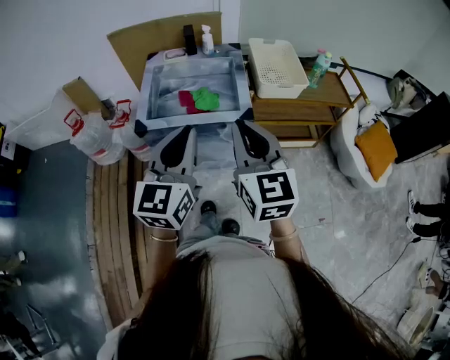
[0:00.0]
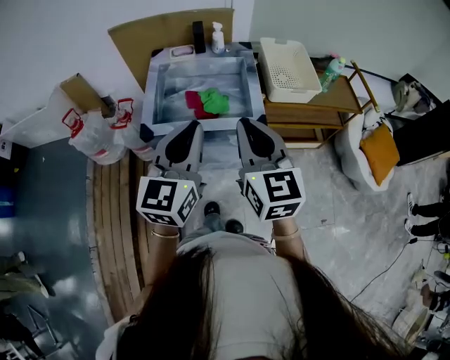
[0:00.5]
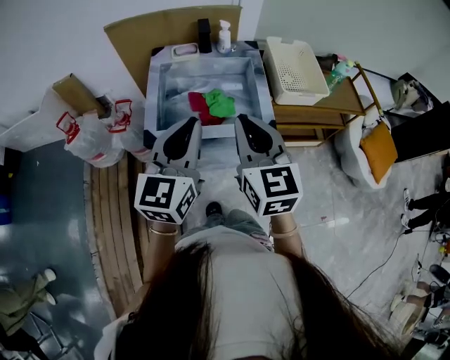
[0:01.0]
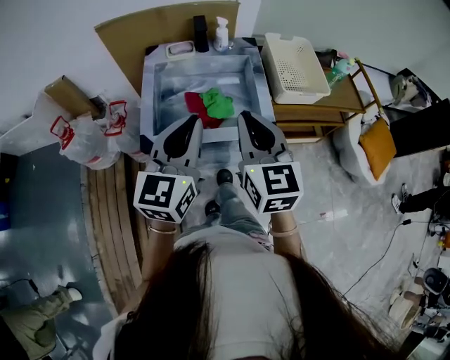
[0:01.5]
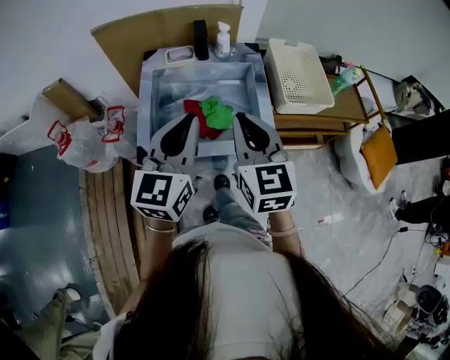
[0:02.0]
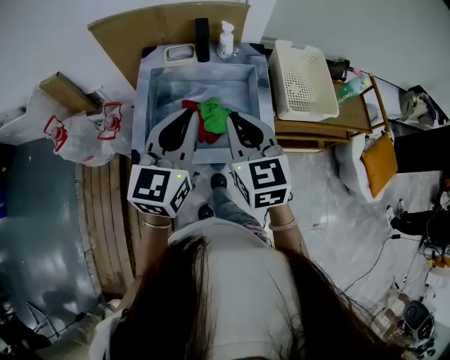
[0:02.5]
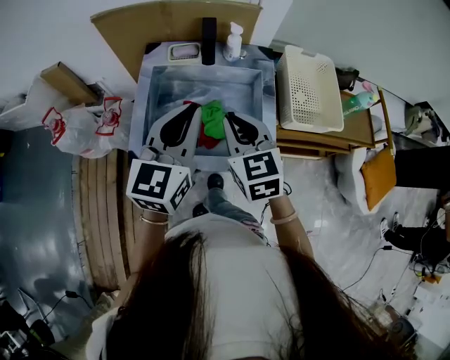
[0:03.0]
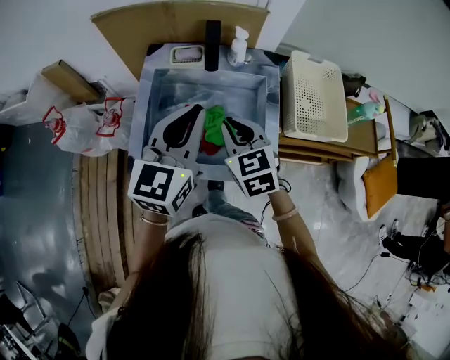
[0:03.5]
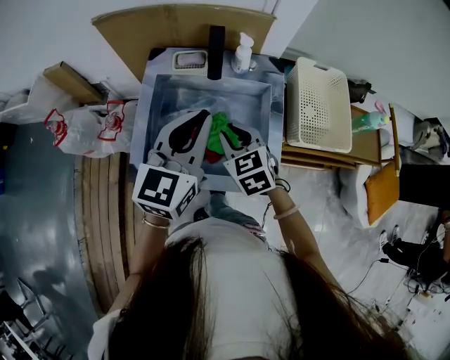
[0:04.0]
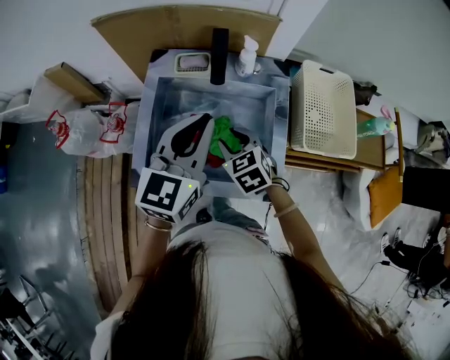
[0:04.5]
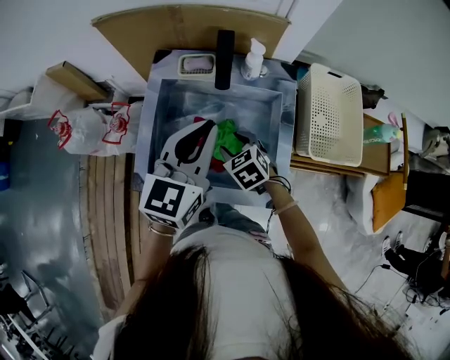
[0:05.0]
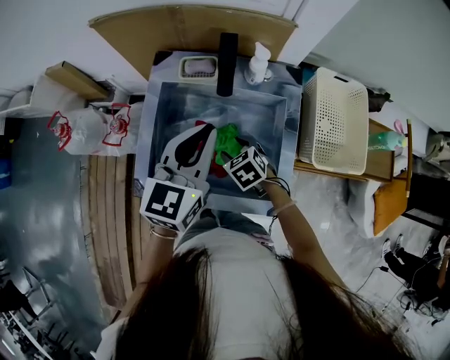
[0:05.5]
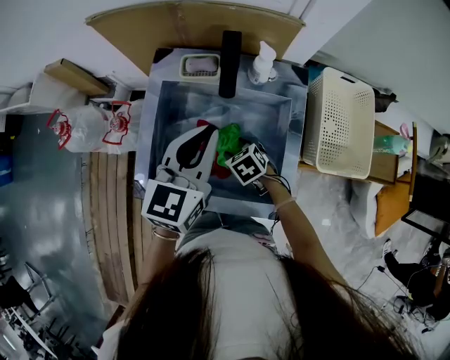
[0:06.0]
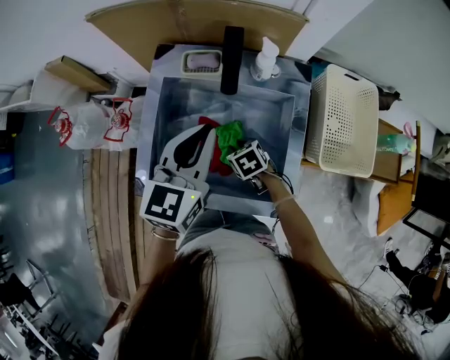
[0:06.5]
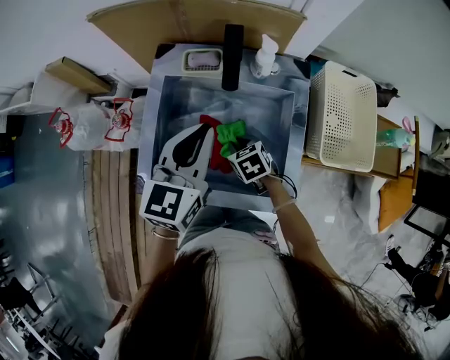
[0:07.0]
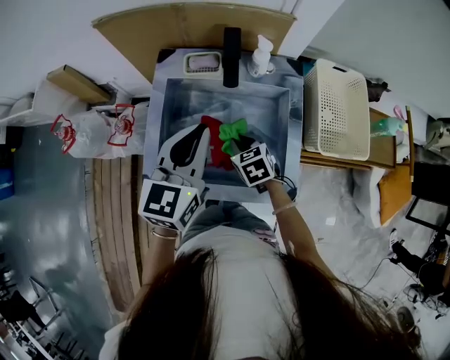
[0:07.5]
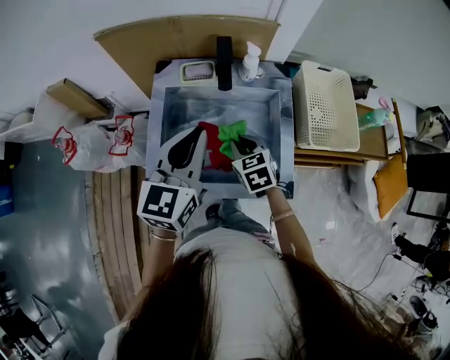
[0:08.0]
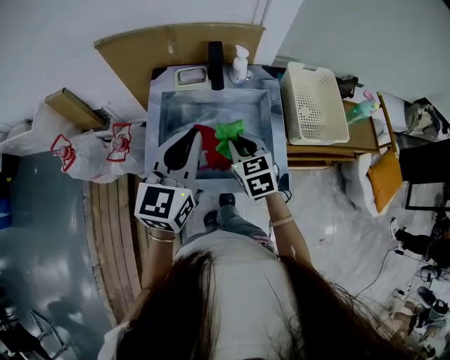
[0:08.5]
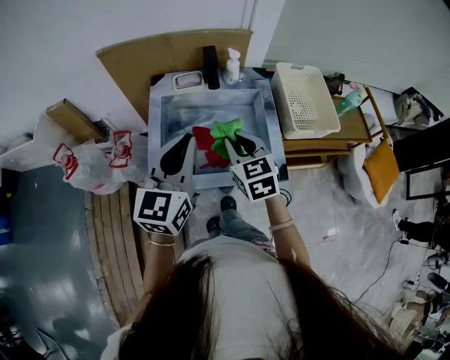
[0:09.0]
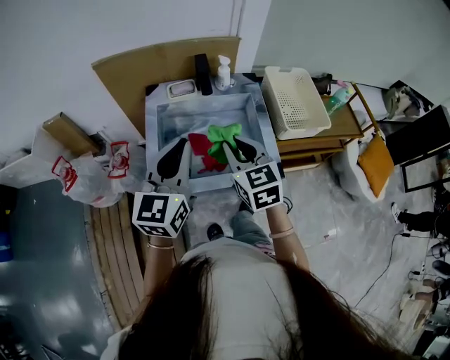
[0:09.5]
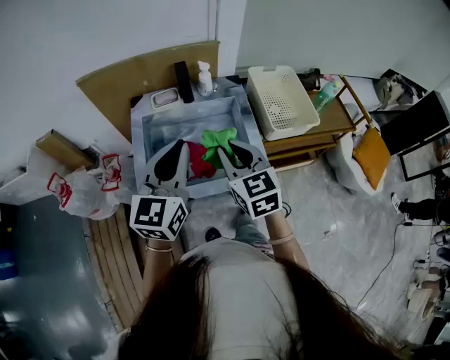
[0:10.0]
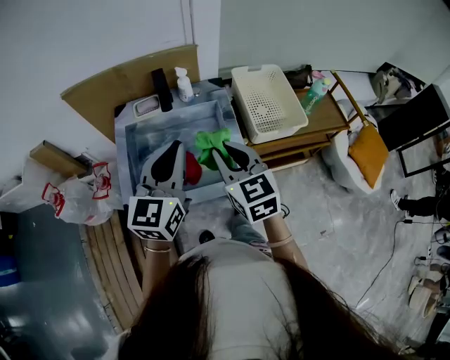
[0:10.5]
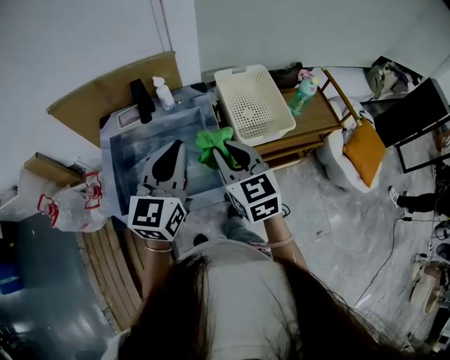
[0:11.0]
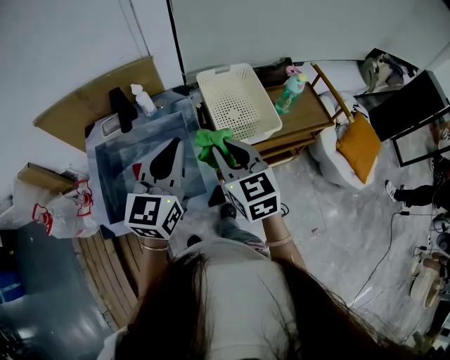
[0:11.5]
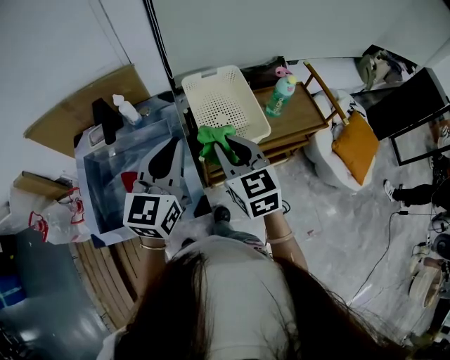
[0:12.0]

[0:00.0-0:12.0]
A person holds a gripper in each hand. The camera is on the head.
0:00.0 to 0:02.0: The two grippers go approximately 25 cm forward and to the left.
0:02.0 to 0:04.0: The right gripper heads downward and forward, covering about 20 cm, and changes its angle by approximately 40 degrees; the left gripper travels forward by some 15 cm.
0:04.0 to 0:06.0: The left gripper shifts roughly 10 cm forward and downward, while the right gripper heads downward, covering roughly 20 cm, rotates some 30 degrees, and opens up.
0:06.0 to 0:08.0: The right gripper goes some 10 cm upward, changes its angle by approximately 30 degrees, and closes. Meanwhile the left gripper goes roughly 5 cm to the left and backward.
0:08.0 to 0:10.0: The left gripper moves backward and upward, about 10 cm; the right gripper travels upward and backward by roughly 20 cm, and turns by approximately 30 degrees.
0:10.0 to 0:12.0: The right gripper travels to the right by roughly 25 cm, while the left gripper shifts some 30 cm to the right and forward.

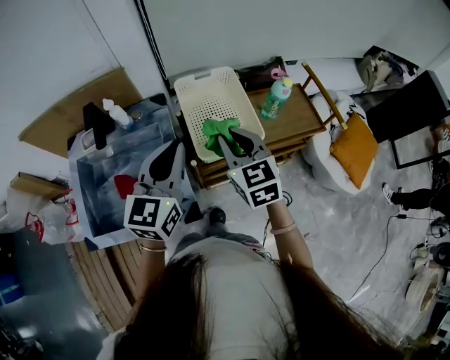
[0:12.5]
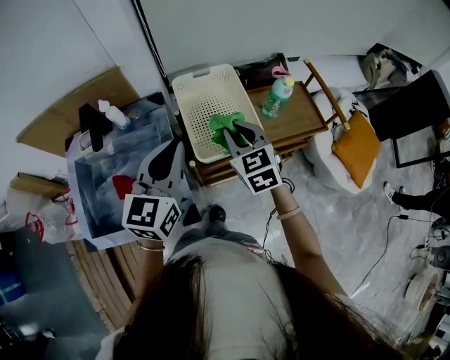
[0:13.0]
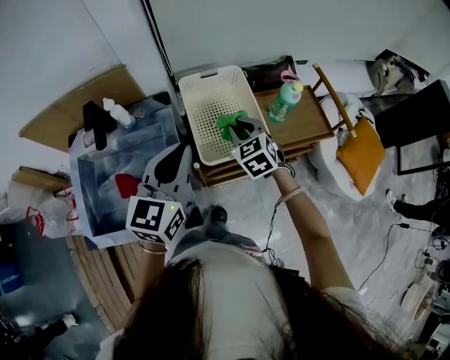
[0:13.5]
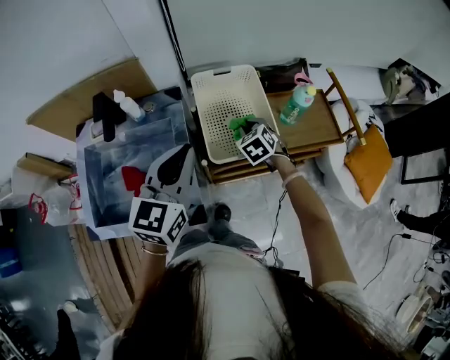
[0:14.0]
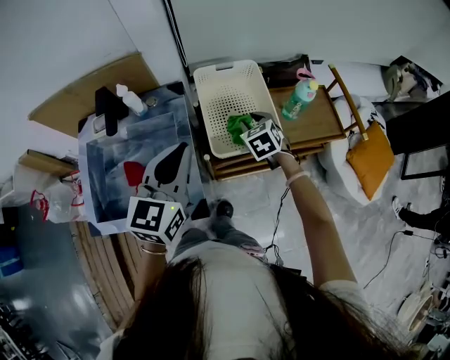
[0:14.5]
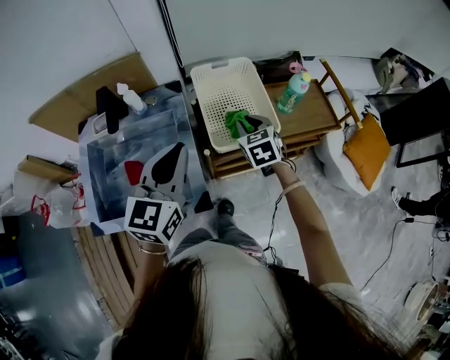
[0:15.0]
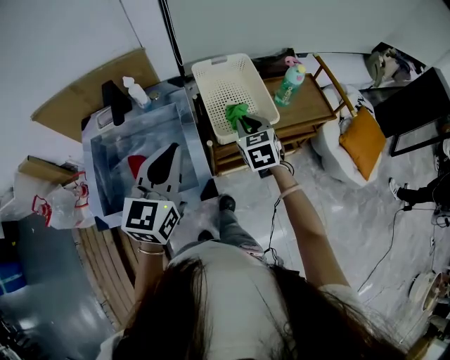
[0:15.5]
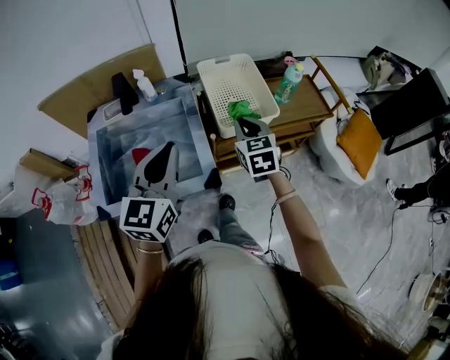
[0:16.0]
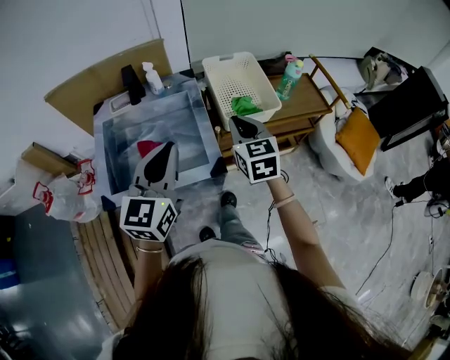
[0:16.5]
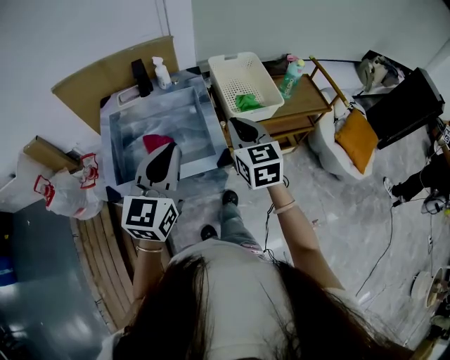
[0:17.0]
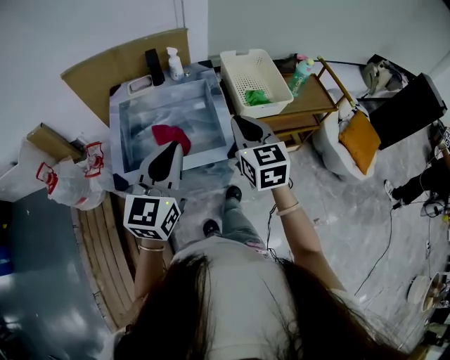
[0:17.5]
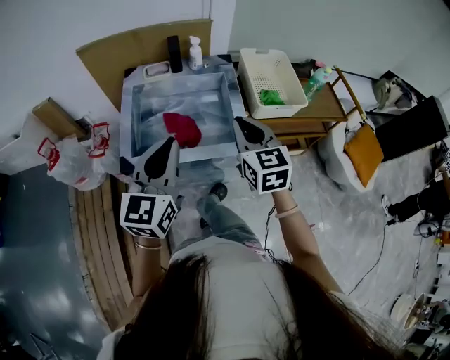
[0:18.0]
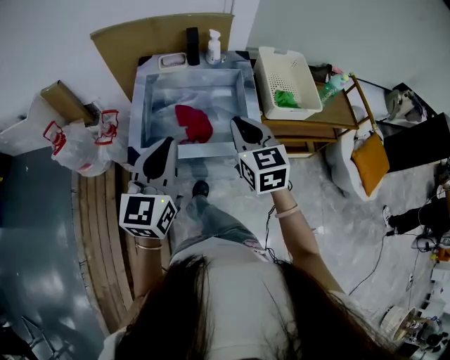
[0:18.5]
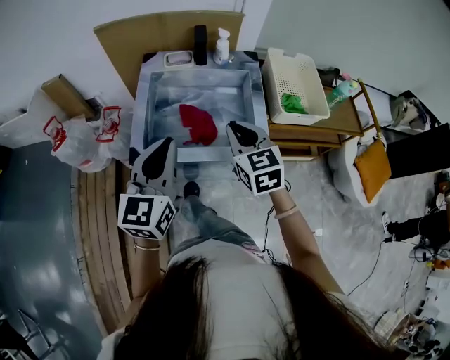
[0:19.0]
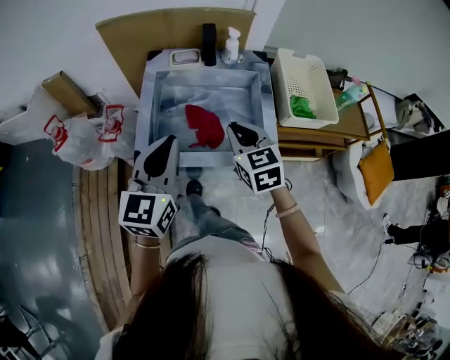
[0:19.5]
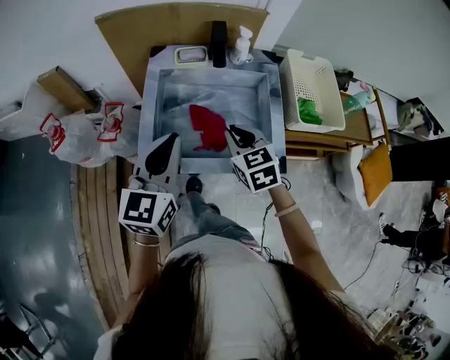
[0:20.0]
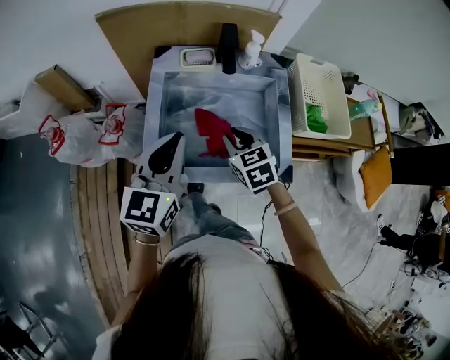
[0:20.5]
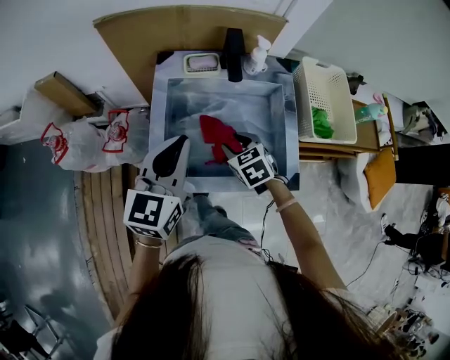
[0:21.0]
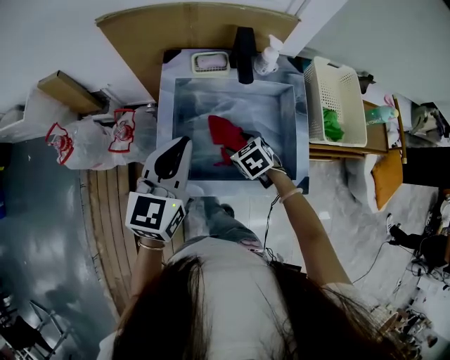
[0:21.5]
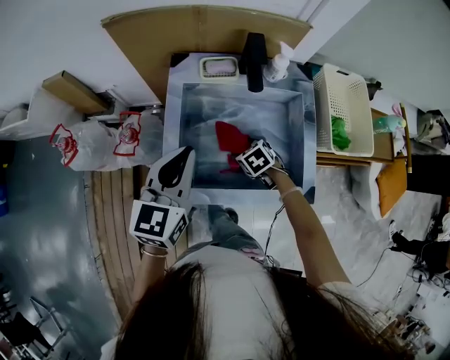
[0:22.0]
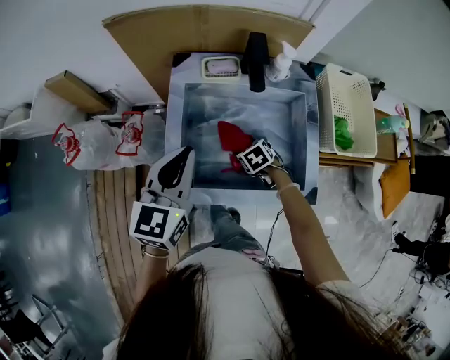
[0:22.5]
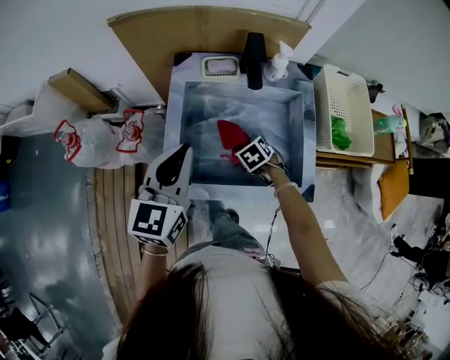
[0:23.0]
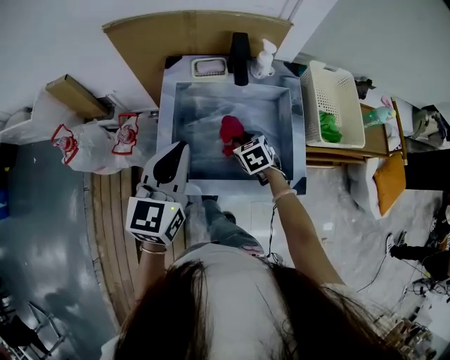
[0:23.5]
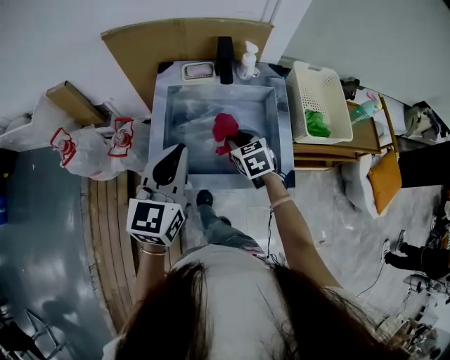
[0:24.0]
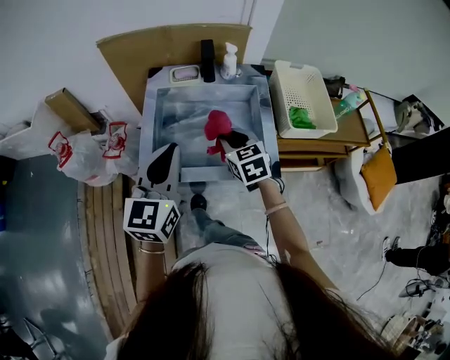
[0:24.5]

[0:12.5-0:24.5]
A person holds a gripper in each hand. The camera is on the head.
0:12.5 to 0:14.5: The right gripper shifts roughly 20 cm downward and forward, and turns by roughly 30 degrees.
0:14.5 to 0:16.5: The left gripper shifts roughly 20 cm backward and to the left. Meanwhile the right gripper goes some 30 cm backward, upward and to the left, swivels some 30 degrees, and closes its fingers.
0:16.5 to 0:18.5: The two grippers go about 20 cm to the left and backward.
0:18.5 to 0:20.5: The left gripper shifts some 15 cm forward and to the left, while the right gripper shifts roughly 20 cm downward, forward and to the left, and turns by approximately 30 degrees.
0:20.5 to 0:22.5: The left gripper travels forward by some 5 cm, while the right gripper travels downward by approximately 20 cm, turns by about 30 degrees, and opens.
0:22.5 to 0:24.5: The left gripper shifts roughly 15 cm backward, upward and to the right. Meanwhile the right gripper heads upward, covering some 25 cm, points its fingers some 30 degrees further upward, and closes.

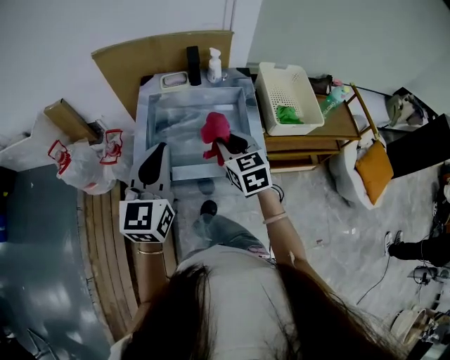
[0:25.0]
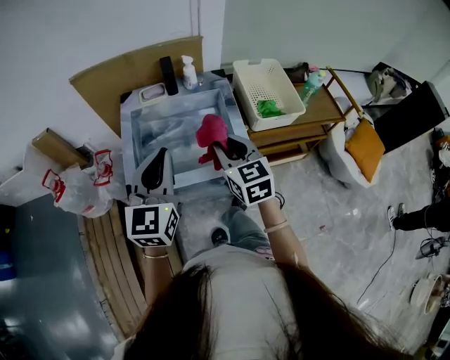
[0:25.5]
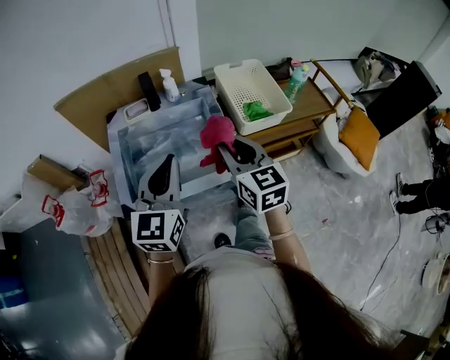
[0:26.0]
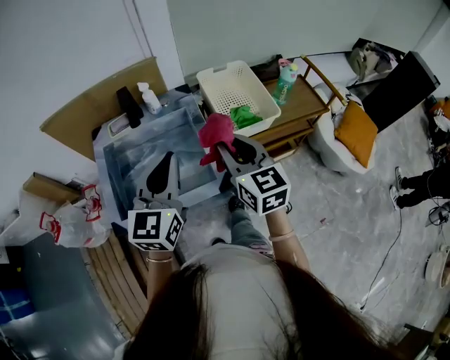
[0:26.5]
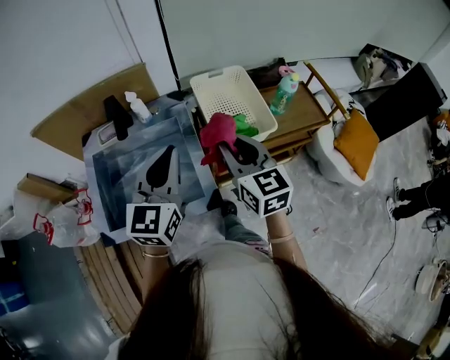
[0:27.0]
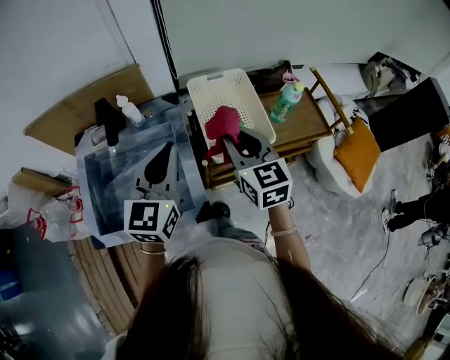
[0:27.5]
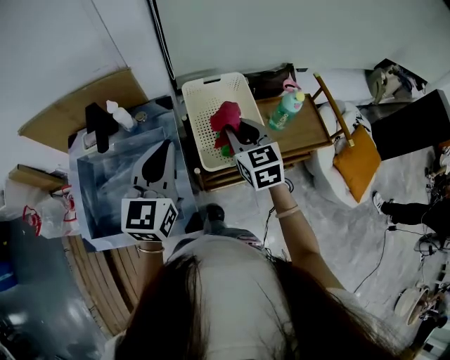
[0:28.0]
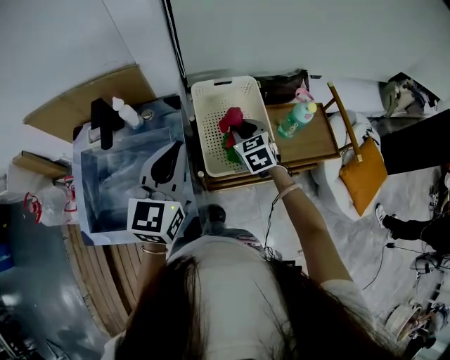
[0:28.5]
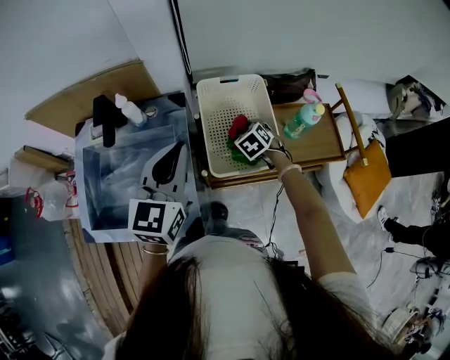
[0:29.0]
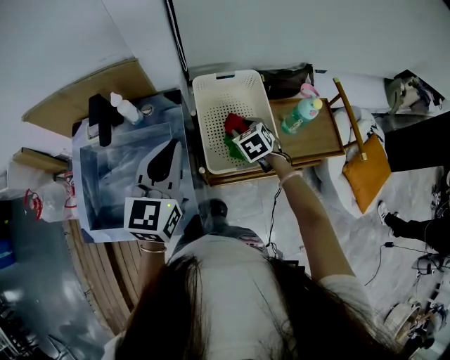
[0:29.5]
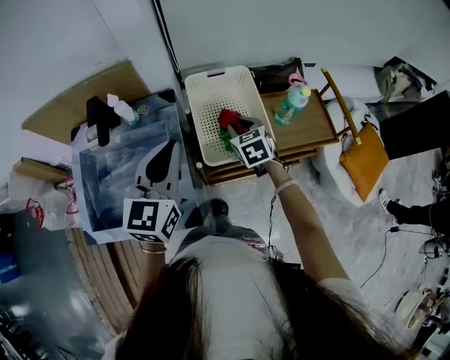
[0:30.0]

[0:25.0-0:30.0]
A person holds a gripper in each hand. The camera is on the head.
0:25.0 to 0:27.5: The grippers both shift to the right and forward by some 30 cm.
0:27.5 to 0:30.0: The right gripper goes about 20 cm downward and forward, and rotates about 30 degrees. The left gripper ends up approximately 5 cm from where it was.
